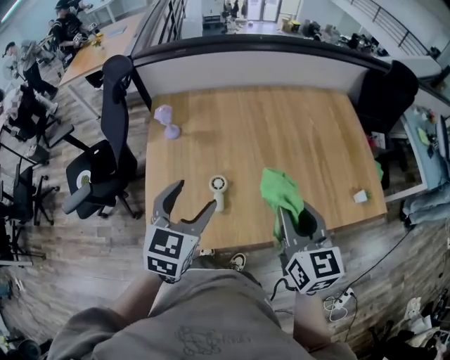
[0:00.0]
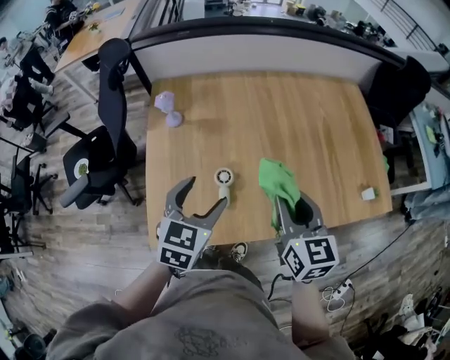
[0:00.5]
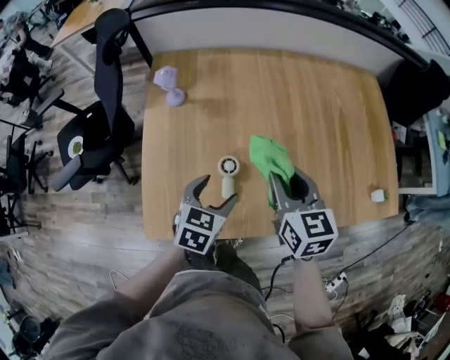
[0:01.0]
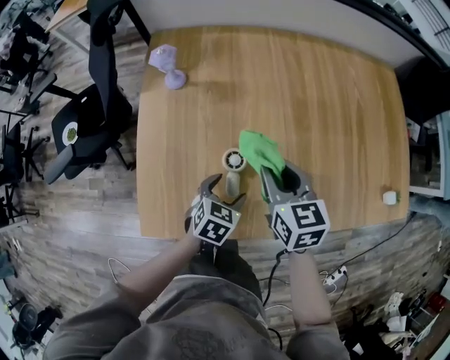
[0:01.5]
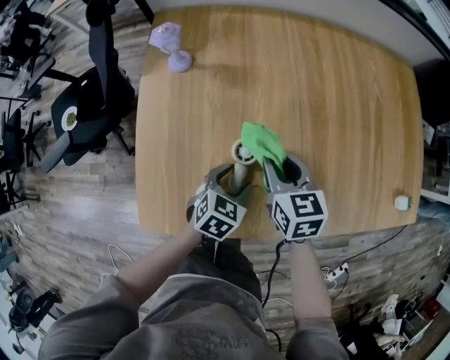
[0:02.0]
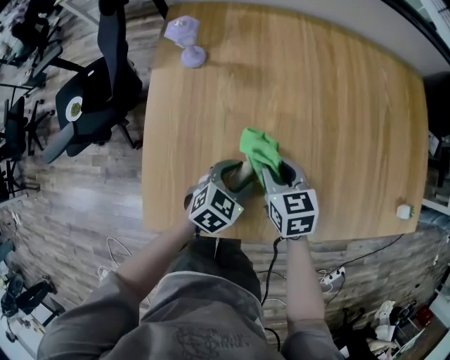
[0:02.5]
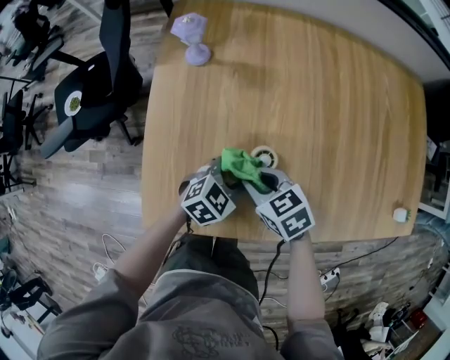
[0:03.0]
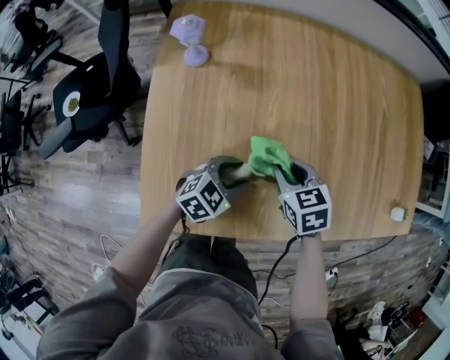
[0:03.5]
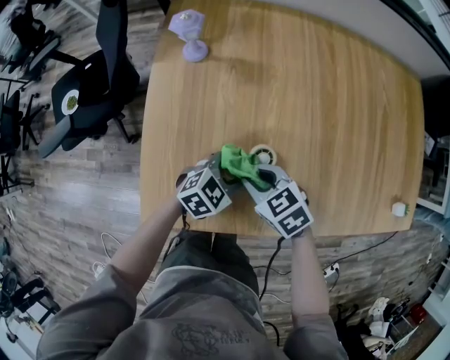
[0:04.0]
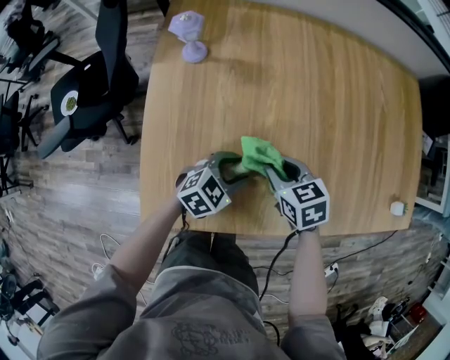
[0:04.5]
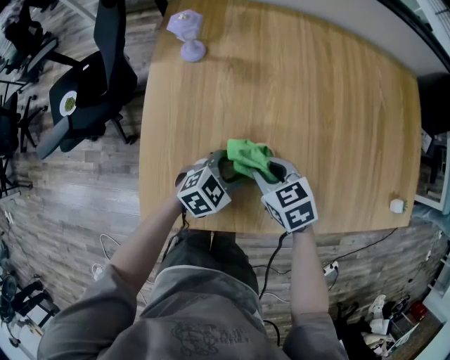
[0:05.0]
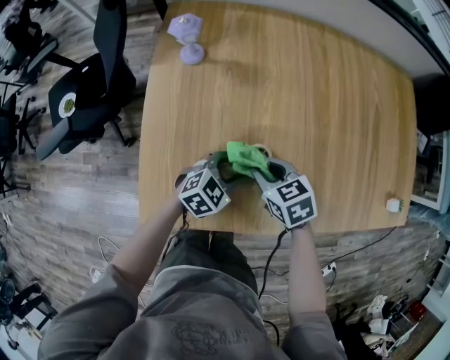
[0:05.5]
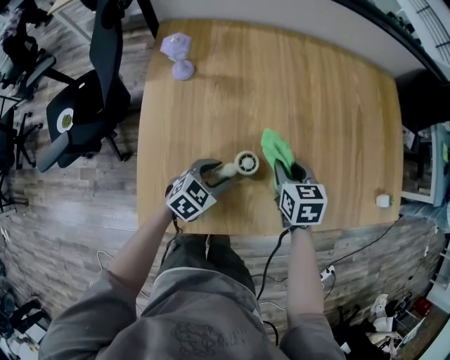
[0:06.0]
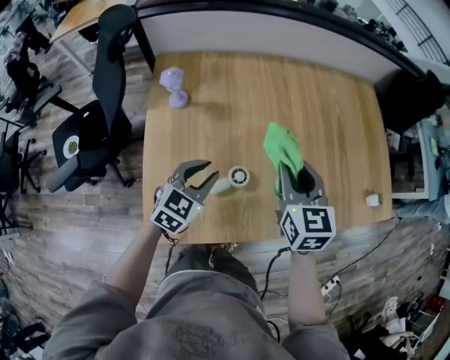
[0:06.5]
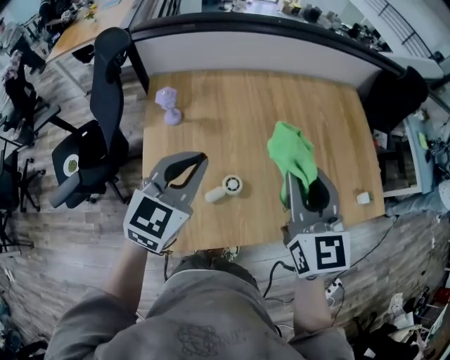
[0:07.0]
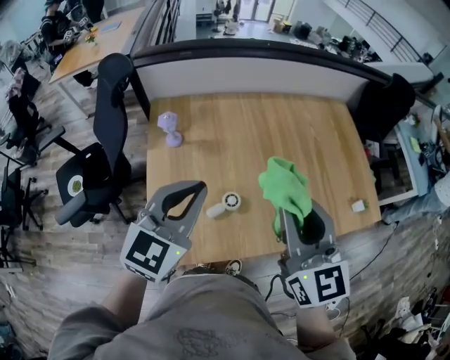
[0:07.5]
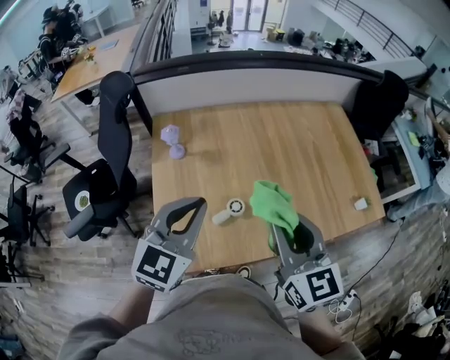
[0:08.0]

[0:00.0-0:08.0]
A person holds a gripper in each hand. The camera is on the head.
0:00.0 to 0:02.0: The right gripper moves downward, forward and to the left, approximately 35 cm, and changes its angle by about 30 degrees, while the left gripper goes roughly 35 cm downward, and rotates roughly 30 degrees.
0:02.0 to 0:04.0: The right gripper moves approximately 10 cm, and rotates roughly 40 degrees; the left gripper changes its angle by some 20 degrees.
0:04.0 to 0:06.0: The right gripper changes place by roughly 15 cm, and turns by about 40 degrees.
0:06.0 to 0:08.0: The right gripper goes about 35 cm upward and backward, and points its fingers roughly 40 degrees further upward, while the left gripper goes approximately 40 cm upward, rotates about 30 degrees, and closes up.

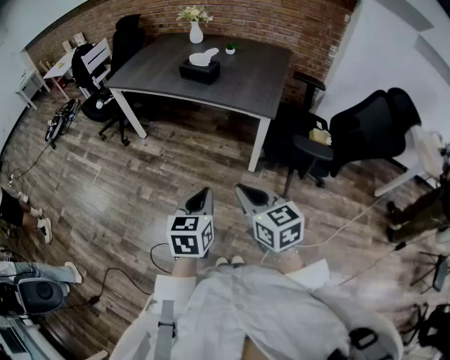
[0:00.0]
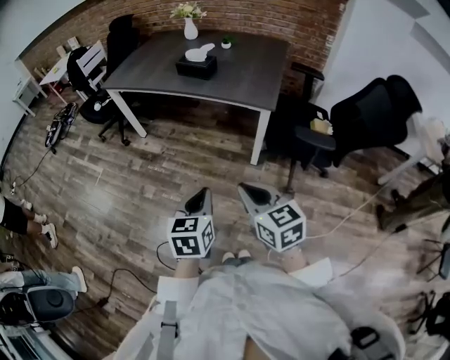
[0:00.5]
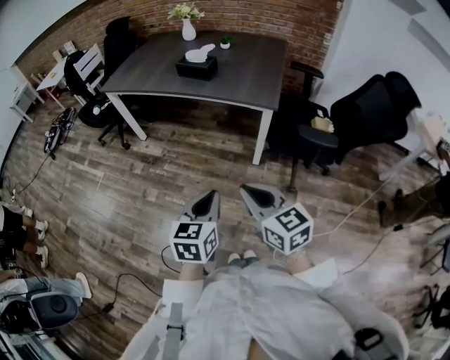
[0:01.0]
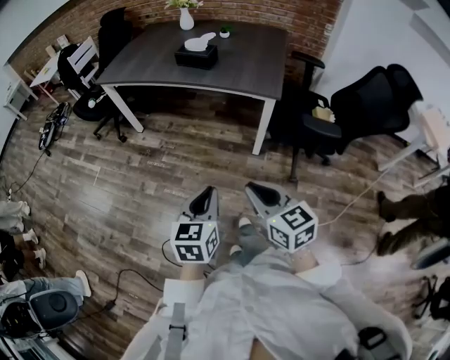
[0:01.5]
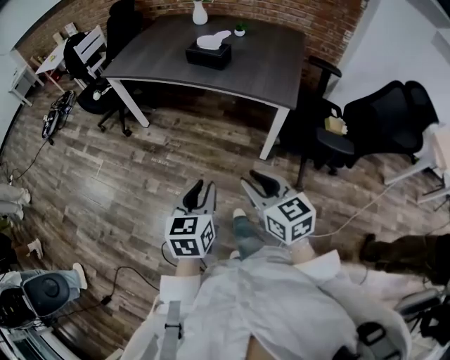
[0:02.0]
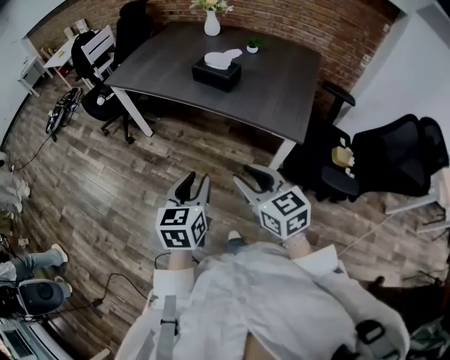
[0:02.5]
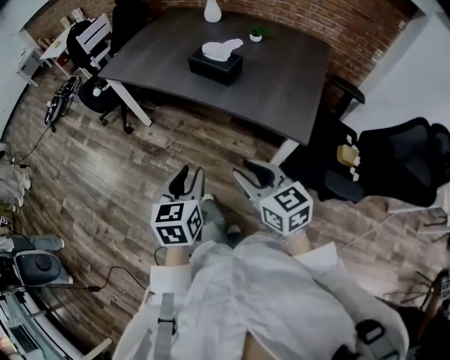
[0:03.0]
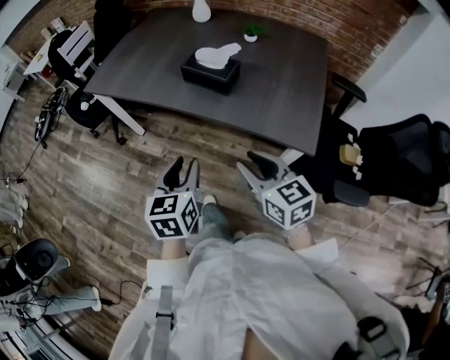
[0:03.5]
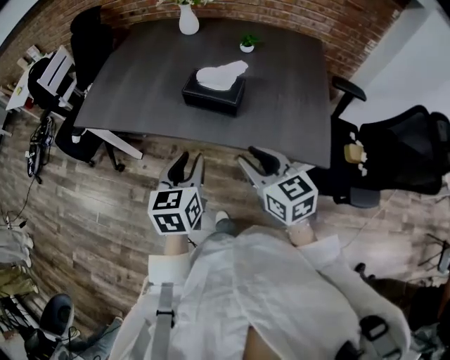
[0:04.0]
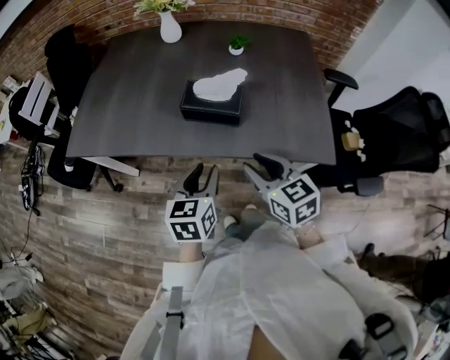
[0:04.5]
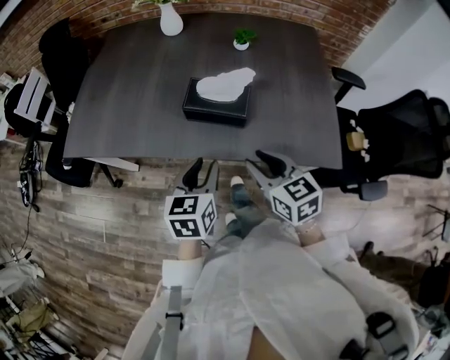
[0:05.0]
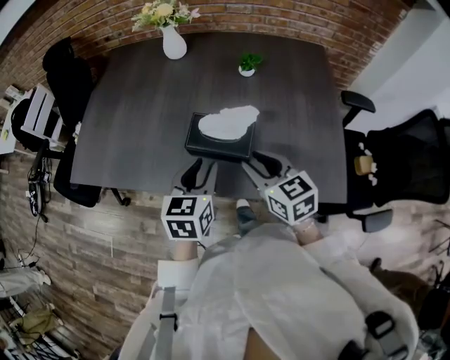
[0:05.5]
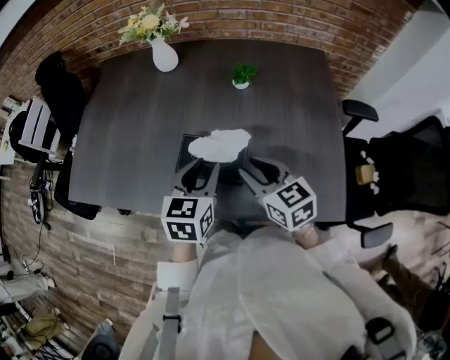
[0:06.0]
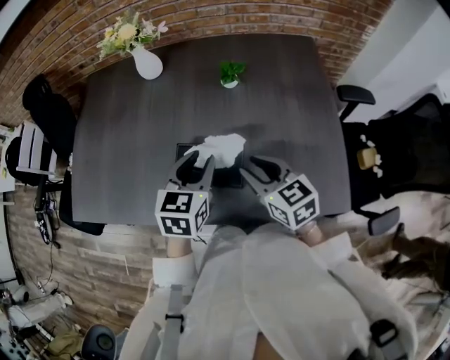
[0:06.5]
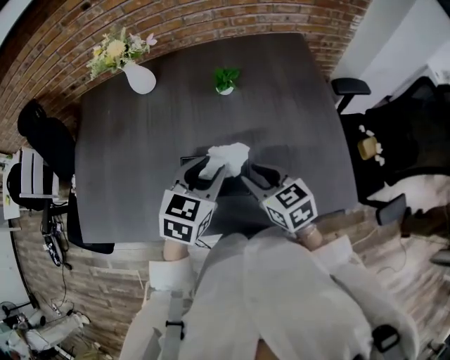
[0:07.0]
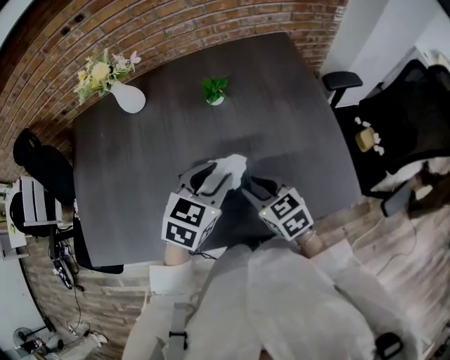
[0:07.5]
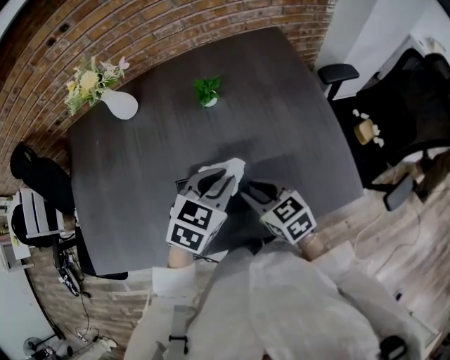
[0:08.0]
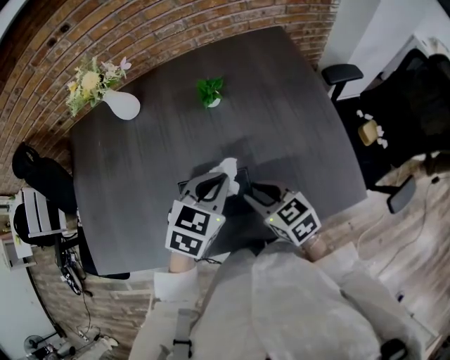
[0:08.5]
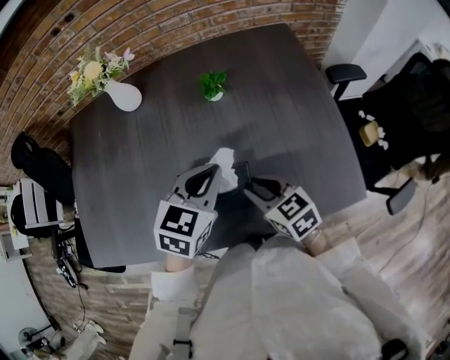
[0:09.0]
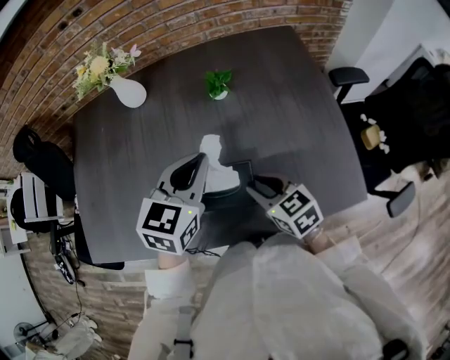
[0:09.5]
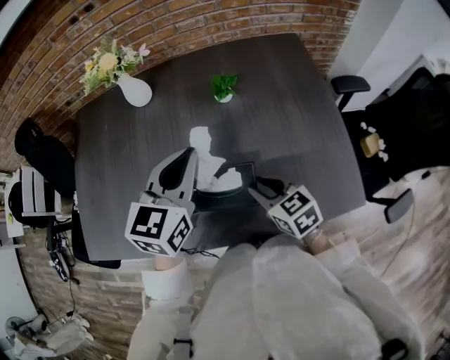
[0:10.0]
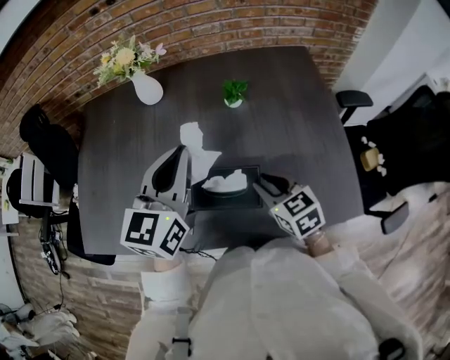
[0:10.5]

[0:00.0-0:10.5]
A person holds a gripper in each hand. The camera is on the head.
0:00.0 to 0:02.0: Both grippers travel together forward and to the left, approximately 10 cm. The right gripper opens its fingers.
0:02.0 to 0:04.0: Both grippers are carried forward, some 50 cm.
0:04.0 to 0:06.5: Both grippers move forward, approximately 30 cm. The left gripper turns by approximately 20 degrees.
0:06.5 to 0:08.5: The right gripper goes approximately 5 cm downward; the left gripper moves roughly 5 cm, swivels some 30 degrees, and closes its fingers.
0:08.5 to 0:10.5: The left gripper goes approximately 20 cm upward and to the left, and tilts its fingers some 30 degrees upward.

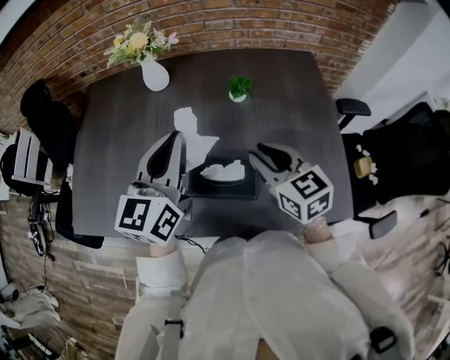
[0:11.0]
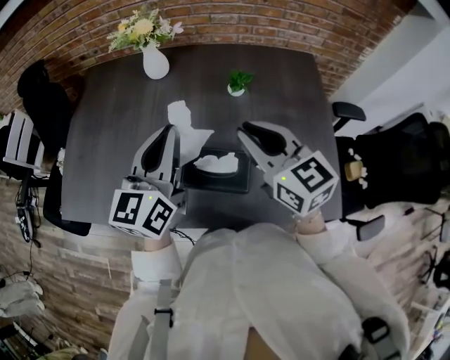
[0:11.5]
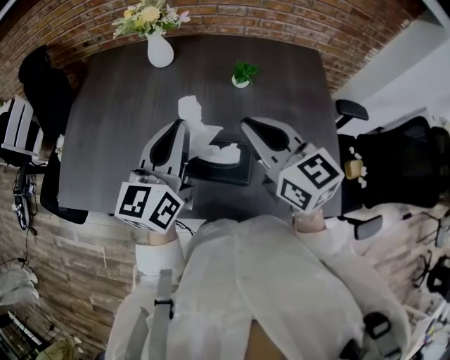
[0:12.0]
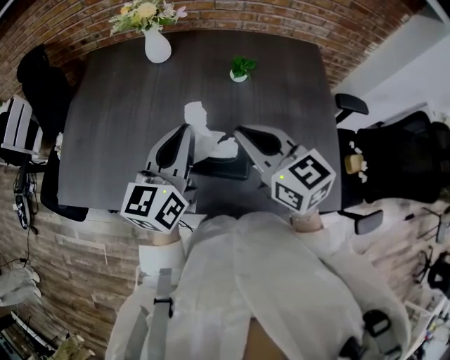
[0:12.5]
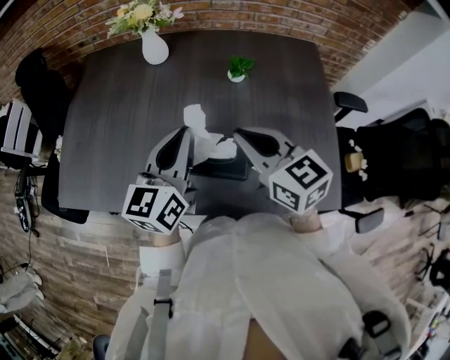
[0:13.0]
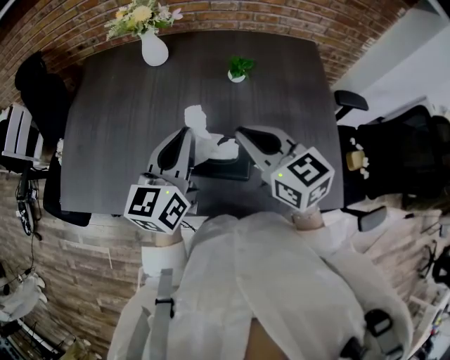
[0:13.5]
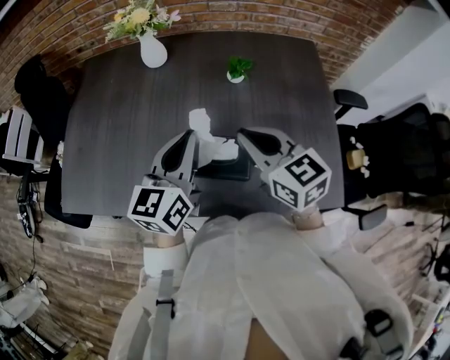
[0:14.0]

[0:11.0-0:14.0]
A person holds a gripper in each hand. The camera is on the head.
0:11.0 to 0:12.5: The right gripper heads upward, covering about 5 cm, and closes its fingers; the left gripper shifts by approximately 5 cm.
0:12.5 to 0:14.0: There are only small adjustments of the grippers.

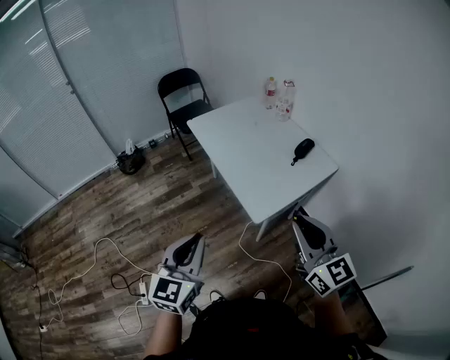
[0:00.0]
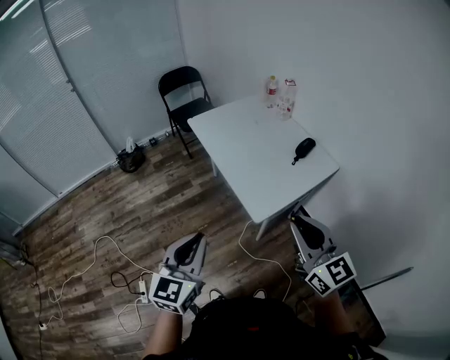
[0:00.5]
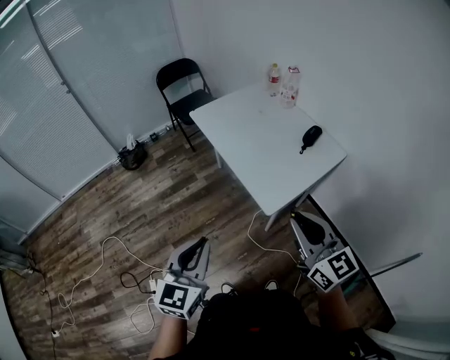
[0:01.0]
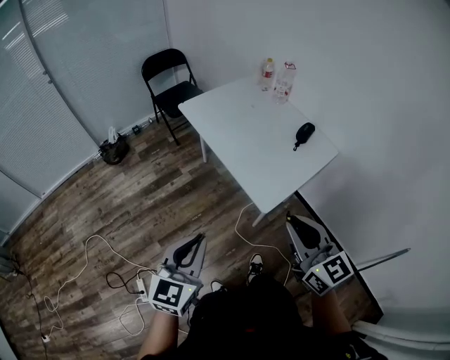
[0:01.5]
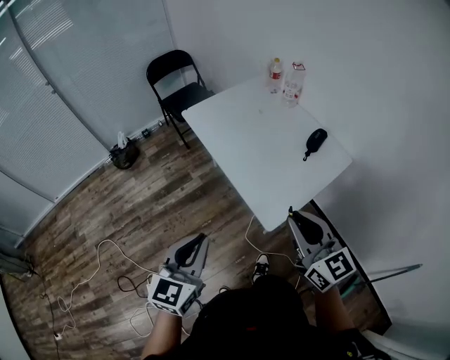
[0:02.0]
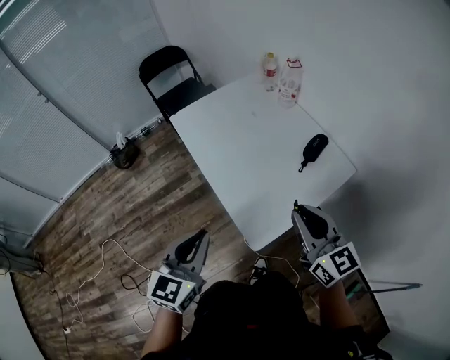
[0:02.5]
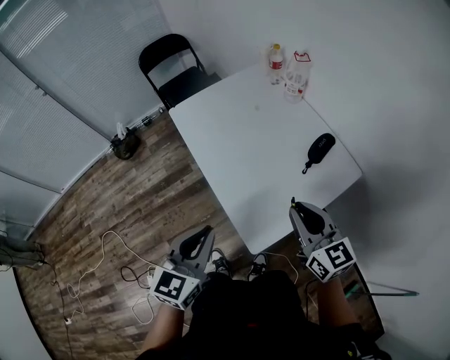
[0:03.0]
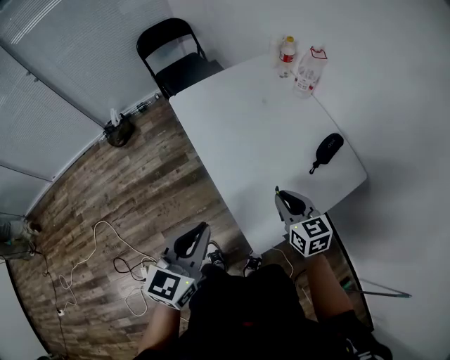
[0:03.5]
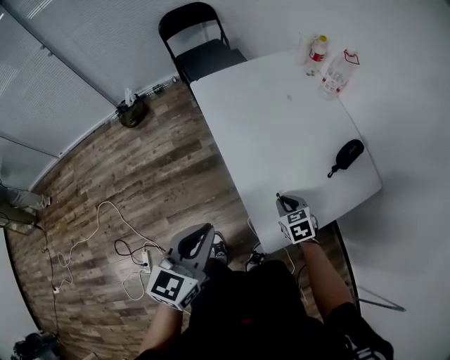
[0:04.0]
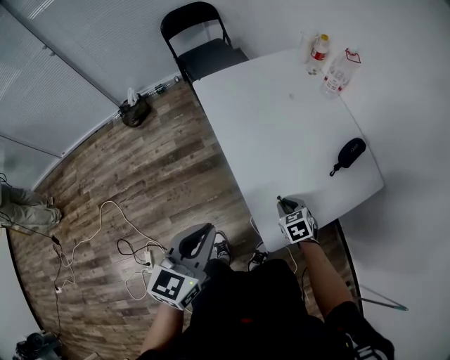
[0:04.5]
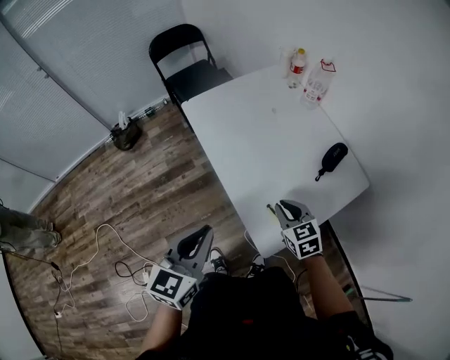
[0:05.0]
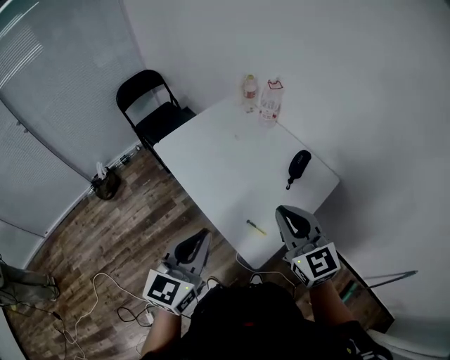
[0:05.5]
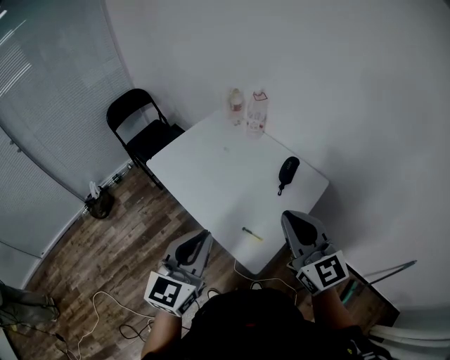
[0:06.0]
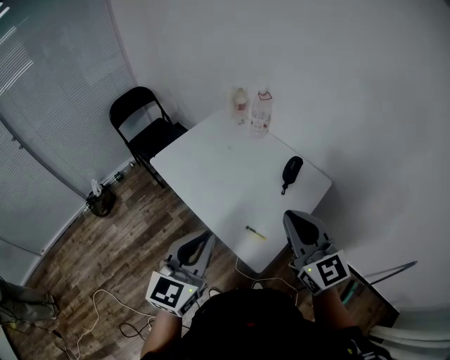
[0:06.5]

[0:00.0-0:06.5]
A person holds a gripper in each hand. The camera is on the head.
0:00.0 to 0:02.0: The left gripper travels forward by some 10 cm. Meanwhile the right gripper is displaced forward and downward by roughly 15 cm.
0:02.0 to 0:04.5: The left gripper moves forward, about 15 cm. Meanwhile the right gripper travels downward and forward by approximately 40 cm, and angles its fingers downward, by about 50 degrees.
0:04.5 to 0:06.5: The right gripper moves upward, roughly 40 cm, and angles its fingers upward, by roughly 60 degrees. Meanwhile the left gripper is displaced upward by about 15 cm, and changes its angle by about 30 degrees.
